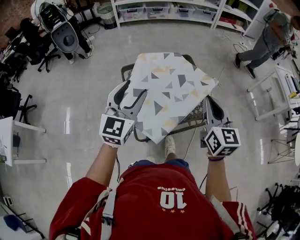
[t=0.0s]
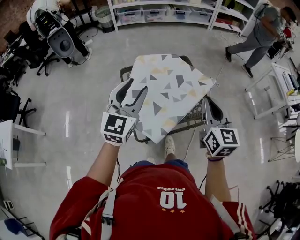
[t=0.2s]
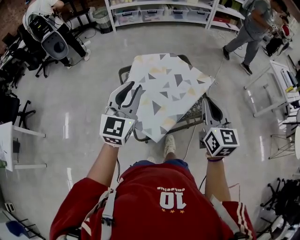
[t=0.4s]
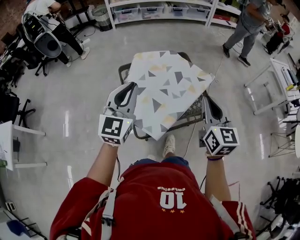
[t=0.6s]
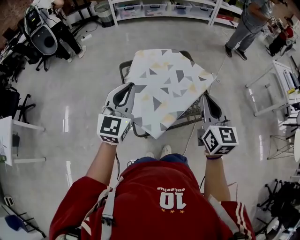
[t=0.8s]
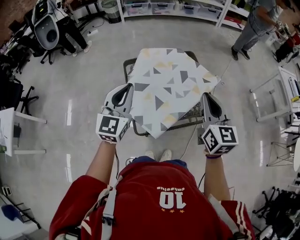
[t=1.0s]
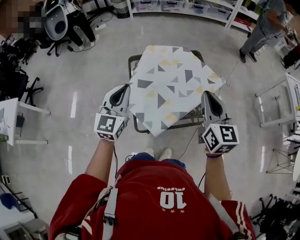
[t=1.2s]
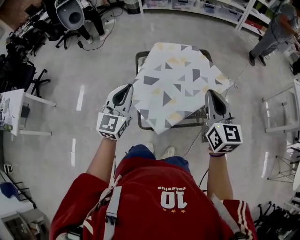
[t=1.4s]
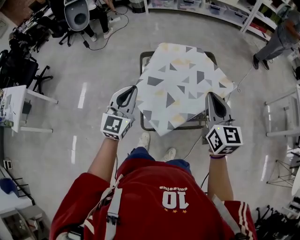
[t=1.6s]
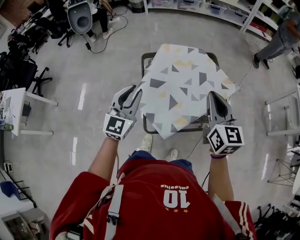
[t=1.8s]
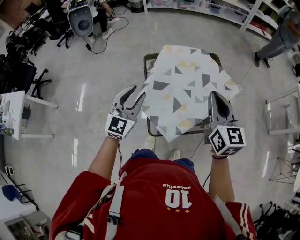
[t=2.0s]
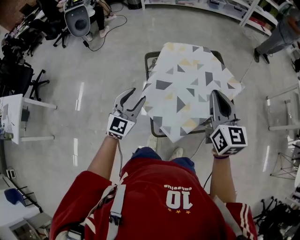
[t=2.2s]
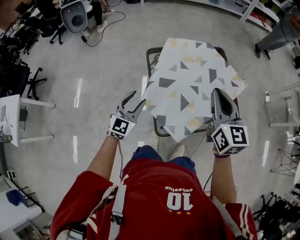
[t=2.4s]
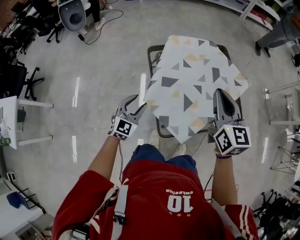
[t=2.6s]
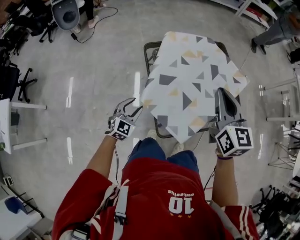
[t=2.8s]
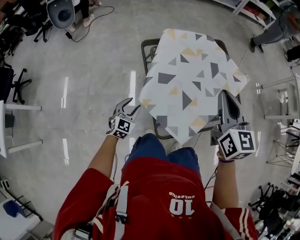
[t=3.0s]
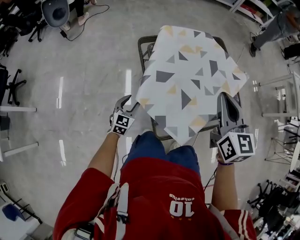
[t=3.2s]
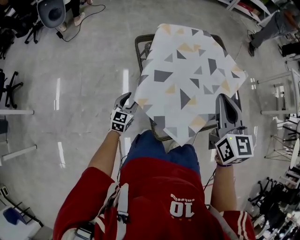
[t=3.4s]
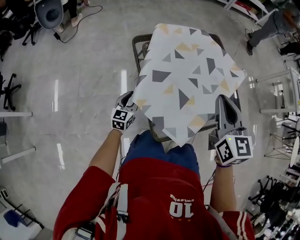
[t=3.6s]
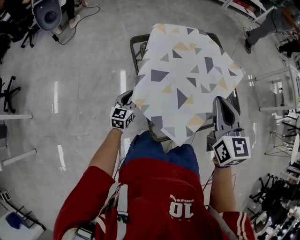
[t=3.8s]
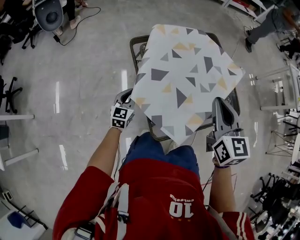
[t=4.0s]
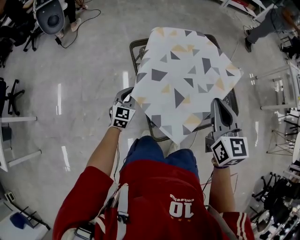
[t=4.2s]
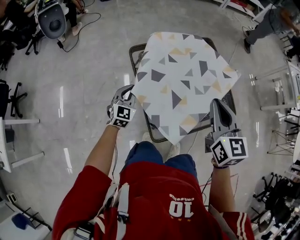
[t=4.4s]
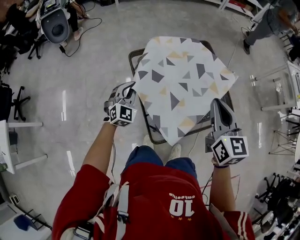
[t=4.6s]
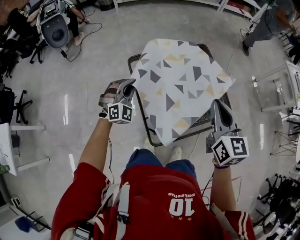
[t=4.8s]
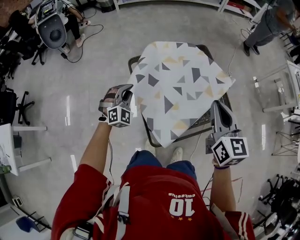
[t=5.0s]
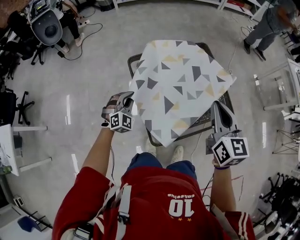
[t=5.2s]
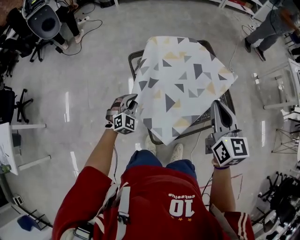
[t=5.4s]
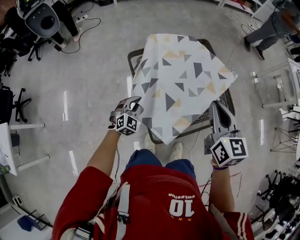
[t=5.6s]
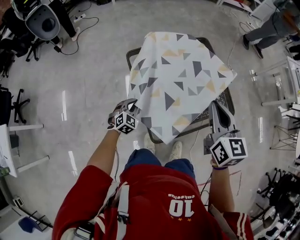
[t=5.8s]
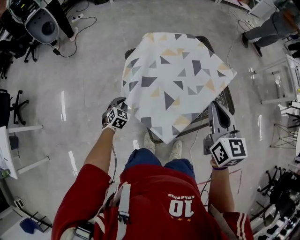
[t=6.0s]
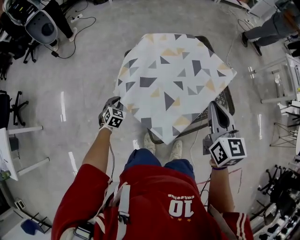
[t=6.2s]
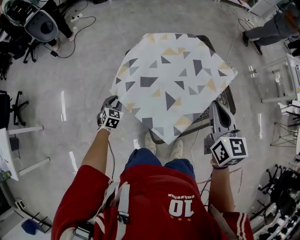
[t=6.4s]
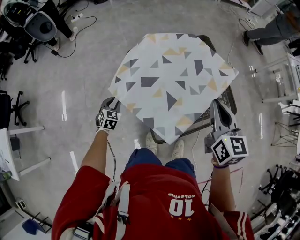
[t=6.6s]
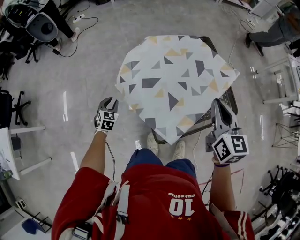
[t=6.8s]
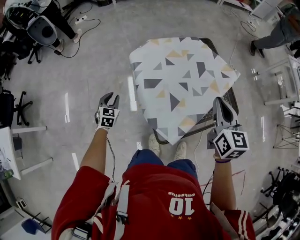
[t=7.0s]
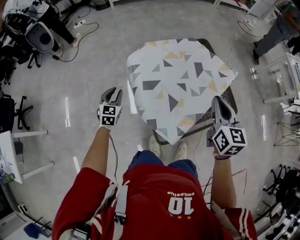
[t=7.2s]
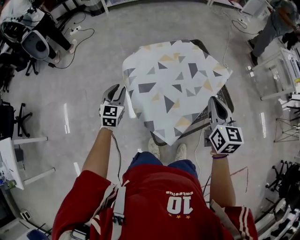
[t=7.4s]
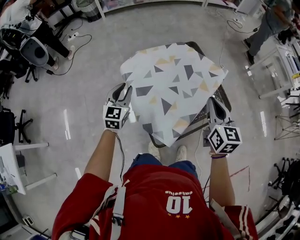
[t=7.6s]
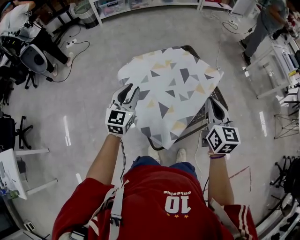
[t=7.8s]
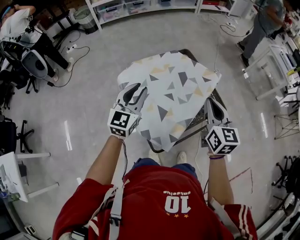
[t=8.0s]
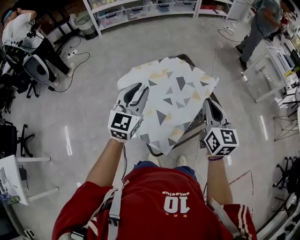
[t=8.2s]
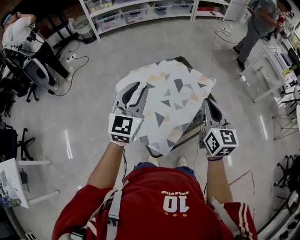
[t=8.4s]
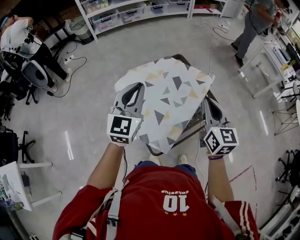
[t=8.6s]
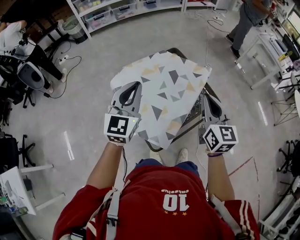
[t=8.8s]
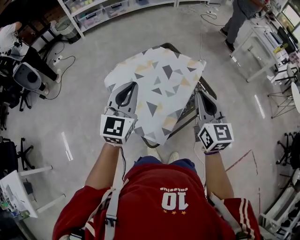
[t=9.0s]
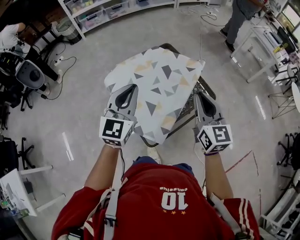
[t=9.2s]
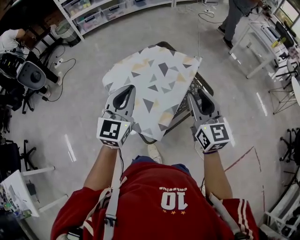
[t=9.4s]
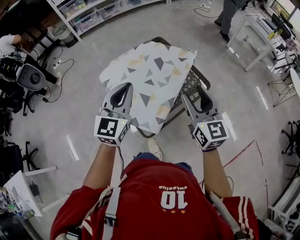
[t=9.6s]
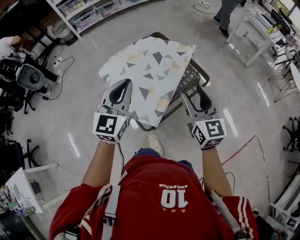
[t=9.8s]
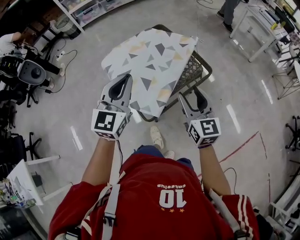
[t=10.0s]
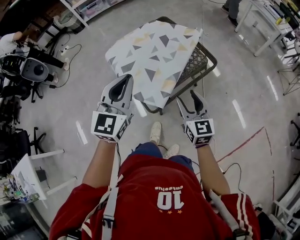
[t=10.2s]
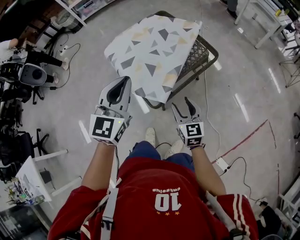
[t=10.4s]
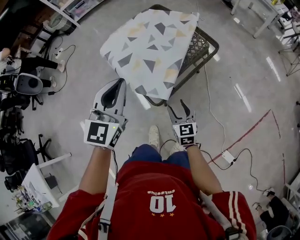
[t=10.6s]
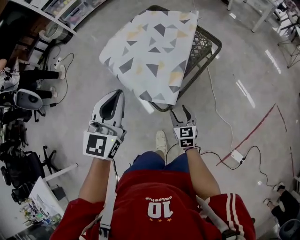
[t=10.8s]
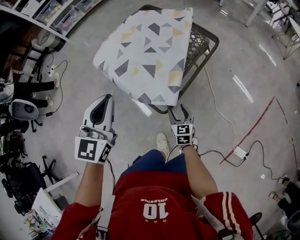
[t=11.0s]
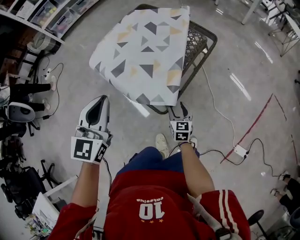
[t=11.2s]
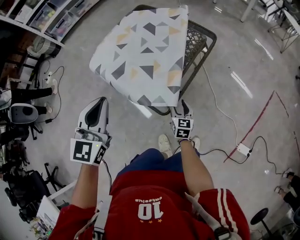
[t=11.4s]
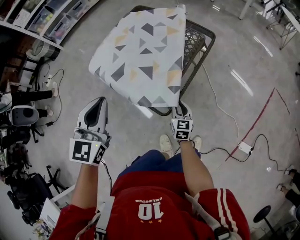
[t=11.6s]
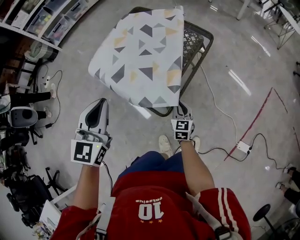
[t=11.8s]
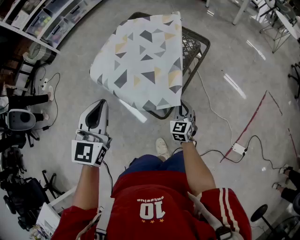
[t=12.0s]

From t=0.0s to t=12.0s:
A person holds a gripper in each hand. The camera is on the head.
From t=0.0s to t=1.6s: The left gripper heads downward, covering approximately 5 cm, and closes.
From t=1.6s to t=3.0s: The right gripper is displaced to the left, downward and forward by approximately 15 cm; the left gripper heads downward, covering about 35 cm, changes its angle by about 30 degrees, and opens its fingers.
From t=3.0s to t=4.4s: The left gripper goes some 15 cm forward and upward, and closes its fingers.
From t=4.4s to t=6.0s: The left gripper moves downward, roughly 10 cm, and turns by roughly 30 degrees.
From t=6.0s to t=7.6s: The left gripper is displaced upward by about 25 cm, tips its fingers upward by some 30 degrees, and opens up.
From t=7.6s to t=9.0s: The right gripper goes some 5 cm upward. Meanwhile the left gripper moves upward and to the right, roughly 25 cm, and closes.
From t=9.0s to t=10.4s: The right gripper heads backward and downward, covering approximately 30 cm, and opens its fingers, while the left gripper shifts roughly 20 cm backward.
From t=10.4s to t=12.0s: The right gripper shifts roughly 15 cm downward, swivels approximately 40 degrees, and closes its fingers, while the left gripper is displaced to the left and downward by some 15 cm.

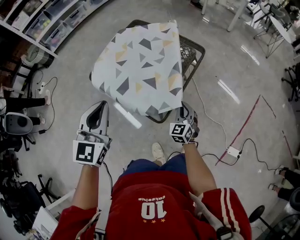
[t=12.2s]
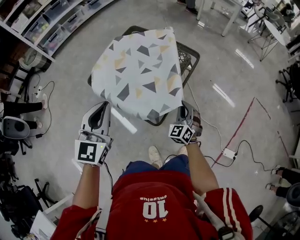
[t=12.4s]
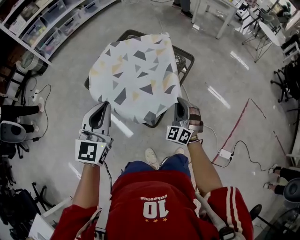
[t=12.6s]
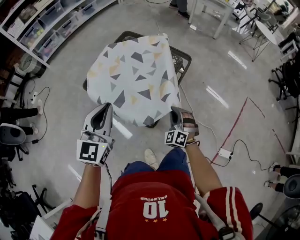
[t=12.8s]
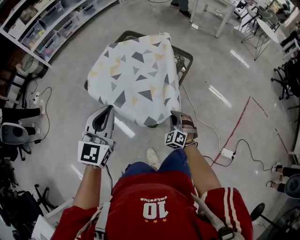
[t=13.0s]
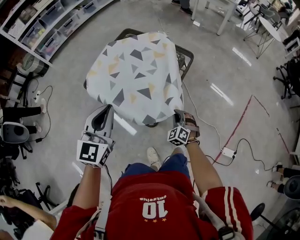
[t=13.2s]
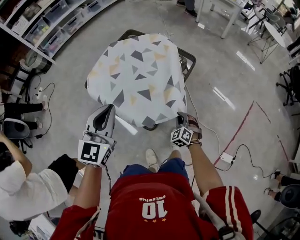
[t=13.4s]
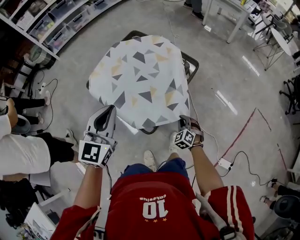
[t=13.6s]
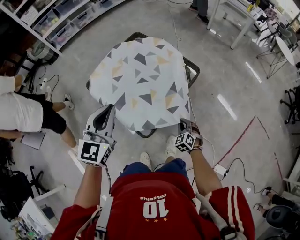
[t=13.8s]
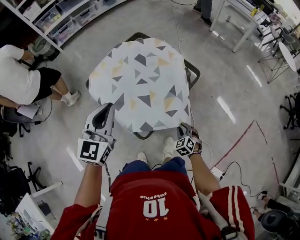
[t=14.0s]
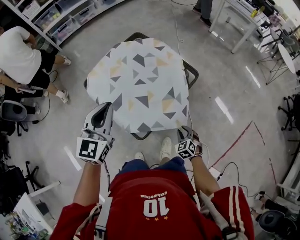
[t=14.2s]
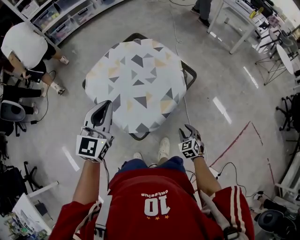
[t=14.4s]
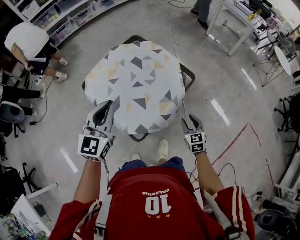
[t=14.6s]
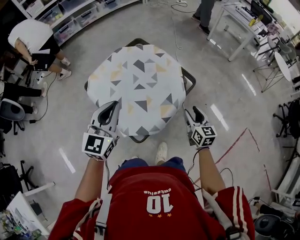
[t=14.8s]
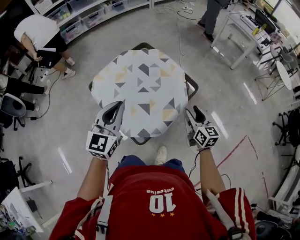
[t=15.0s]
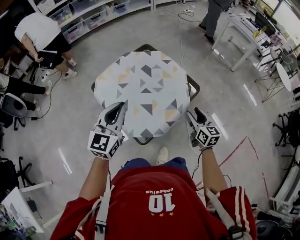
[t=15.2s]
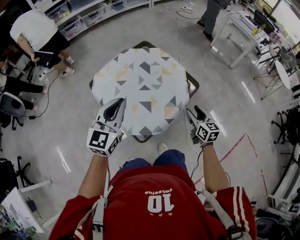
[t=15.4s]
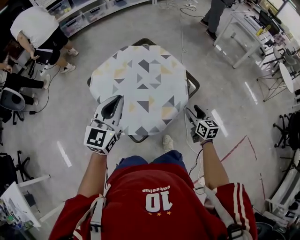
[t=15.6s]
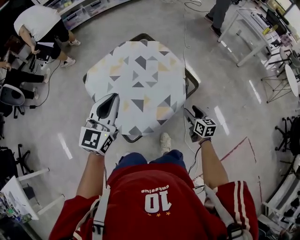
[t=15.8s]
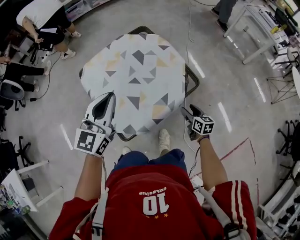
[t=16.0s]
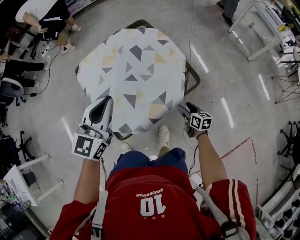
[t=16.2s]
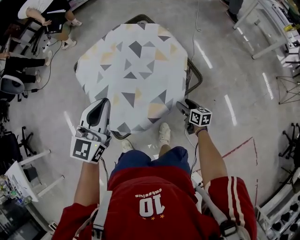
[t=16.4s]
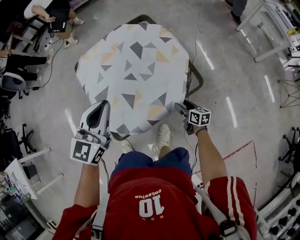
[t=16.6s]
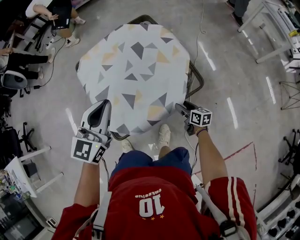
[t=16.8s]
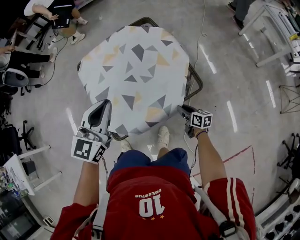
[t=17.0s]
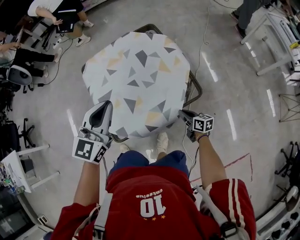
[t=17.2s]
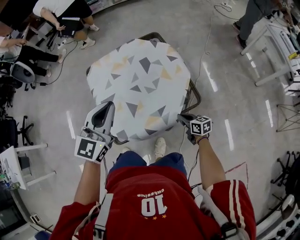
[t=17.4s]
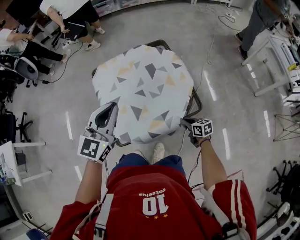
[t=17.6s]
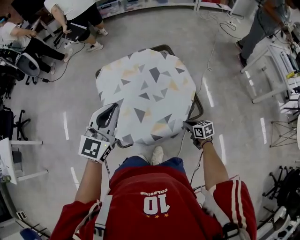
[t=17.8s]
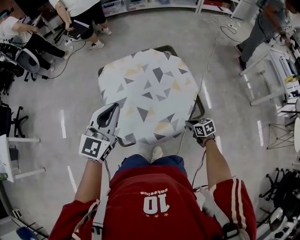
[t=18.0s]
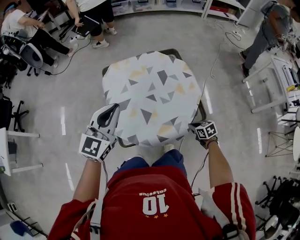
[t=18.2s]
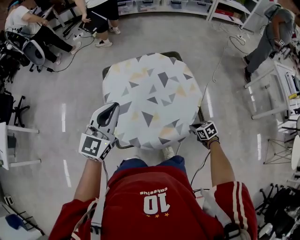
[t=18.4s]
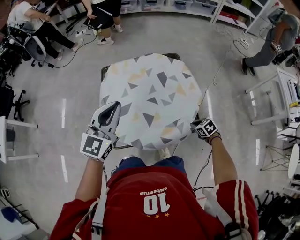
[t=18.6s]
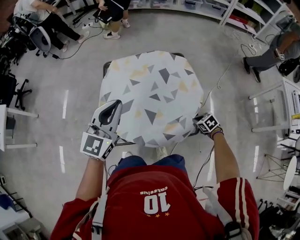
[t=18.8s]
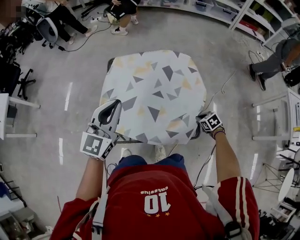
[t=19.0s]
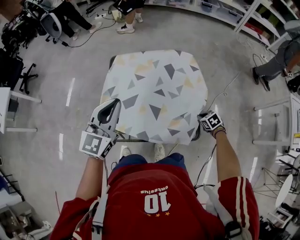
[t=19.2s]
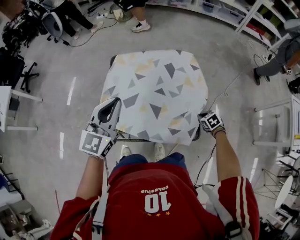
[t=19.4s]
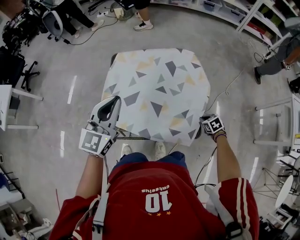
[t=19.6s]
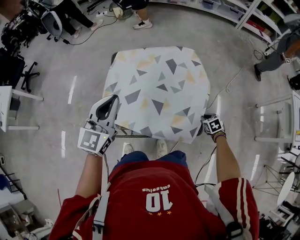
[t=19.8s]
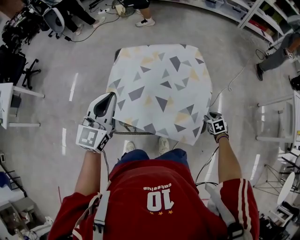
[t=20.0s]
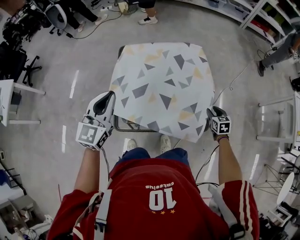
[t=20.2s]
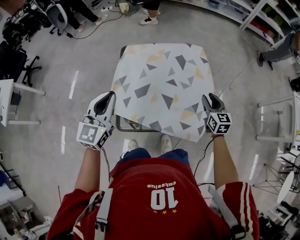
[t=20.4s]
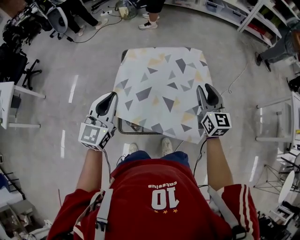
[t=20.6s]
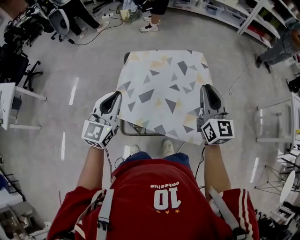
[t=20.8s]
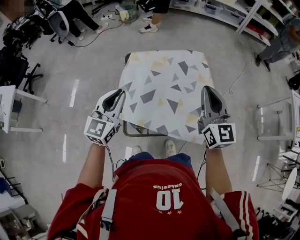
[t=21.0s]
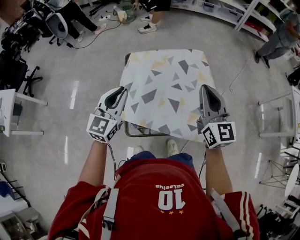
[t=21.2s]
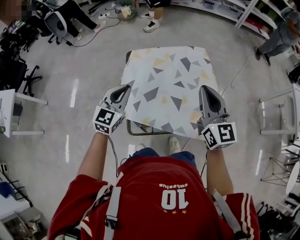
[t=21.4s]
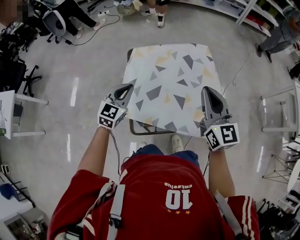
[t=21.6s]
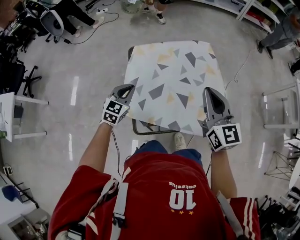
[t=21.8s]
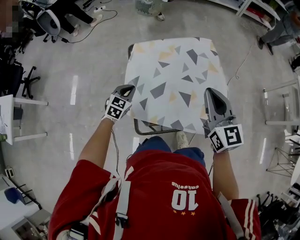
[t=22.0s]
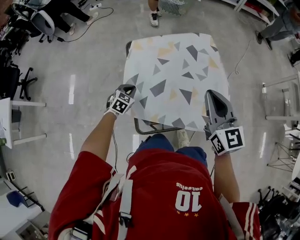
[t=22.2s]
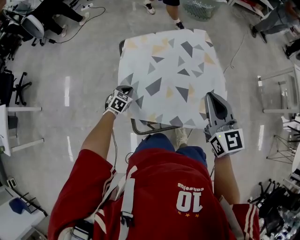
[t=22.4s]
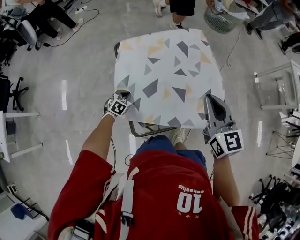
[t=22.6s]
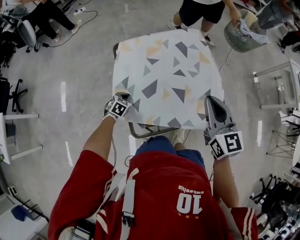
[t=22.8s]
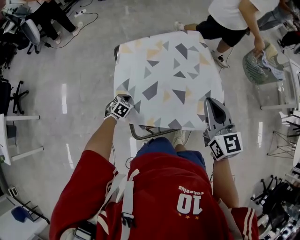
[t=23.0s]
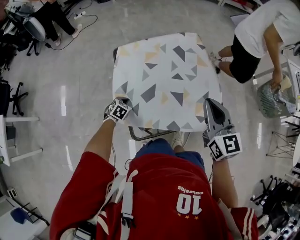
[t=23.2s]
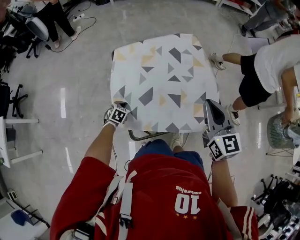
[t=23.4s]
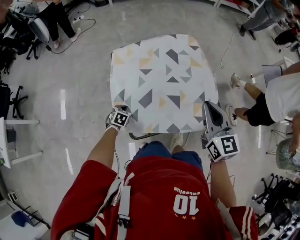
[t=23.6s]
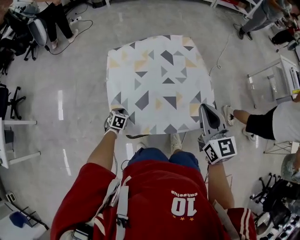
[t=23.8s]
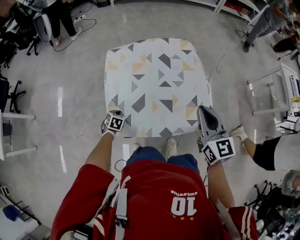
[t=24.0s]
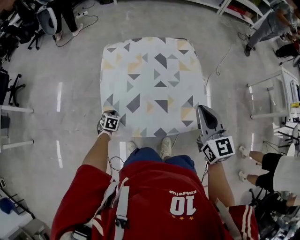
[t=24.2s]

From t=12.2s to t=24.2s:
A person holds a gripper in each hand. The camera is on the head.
From t=12.2s to t=13.8s: The two grippers go roughly 15 cm to the right and forward. The right gripper moves some 15 cm upward and comes back, and rotates about 30 degrees.
From t=13.8s to t=15.2s: The right gripper is displaced upward and forward by about 25 cm, swivels roughly 60 degrees, and opens its fingers.
From t=15.2s to t=16.6s: The left gripper travels to the right, downward and forward by roughly 15 cm; the right gripper travels downward and forward by some 30 cm, and rotates roughly 40 degrees.
From t=16.6s to t=18.2s: The right gripper heads upward, covering approximately 10 cm, swivels approximately 40 degrees, and closes. The left gripper heads to the left and upward, covering roughly 10 cm.
From t=18.2s to t=19.8s: The left gripper swings left and right, about 5 cm each way, with 2 reversals. The right gripper goes left and right, about 15 cm each way, reversing 2 times, and turns by some 20 degrees.
From t=19.8s to t=21.2s: The right gripper shifts some 50 cm upward and to the left, points its fingers some 70 degrees further upward, and opens, then closes once more. Meanwhile the left gripper heads to the left, covering approximately 10 cm.
From t=21.2s to t=22.6s: The right gripper is displaced downward by some 10 cm, while the left gripper travels downward by approximately 40 cm, and tips its fingers downward by roughly 50 degrees.
From t=22.6s to t=24.2s: The left gripper is displaced backward by approximately 10 cm, and rotates roughly 20 degrees; the right gripper travels to the right by roughly 10 cm.
